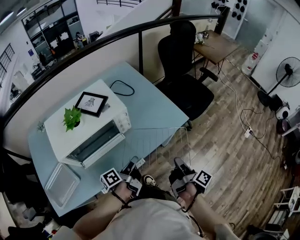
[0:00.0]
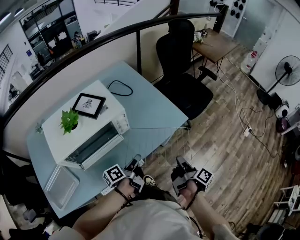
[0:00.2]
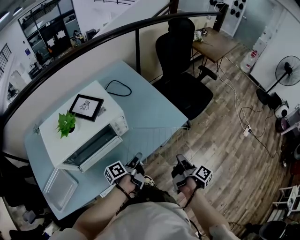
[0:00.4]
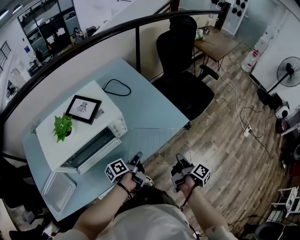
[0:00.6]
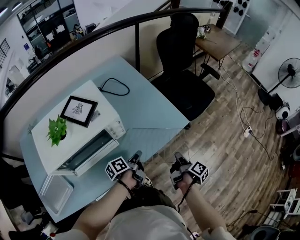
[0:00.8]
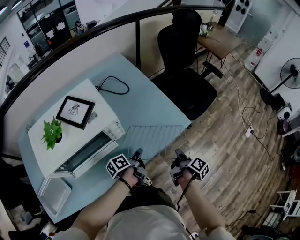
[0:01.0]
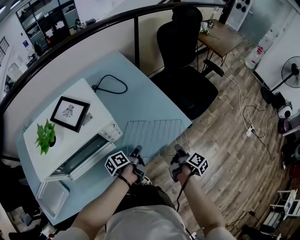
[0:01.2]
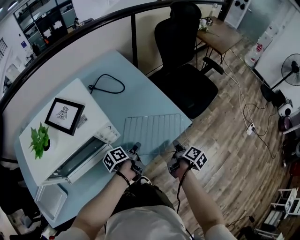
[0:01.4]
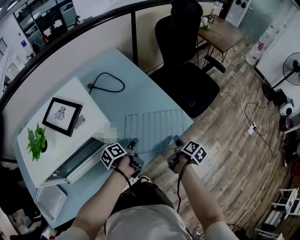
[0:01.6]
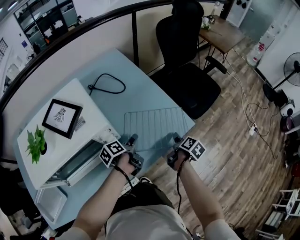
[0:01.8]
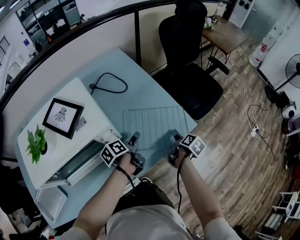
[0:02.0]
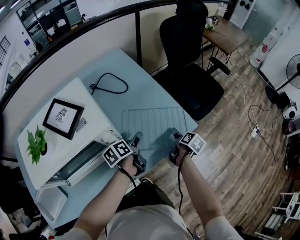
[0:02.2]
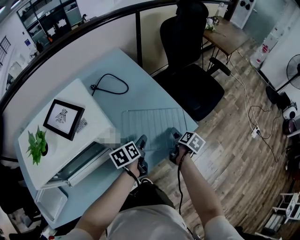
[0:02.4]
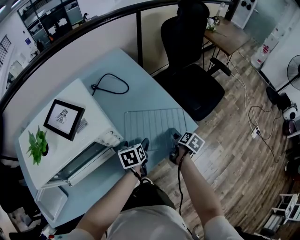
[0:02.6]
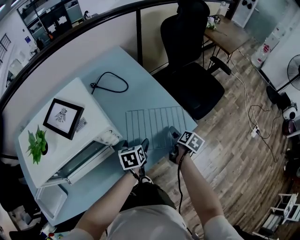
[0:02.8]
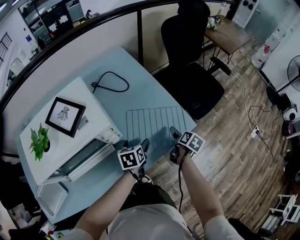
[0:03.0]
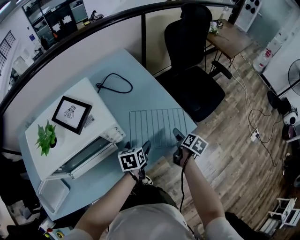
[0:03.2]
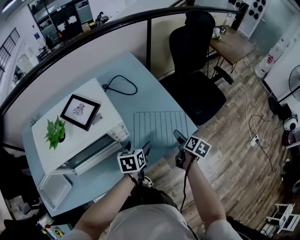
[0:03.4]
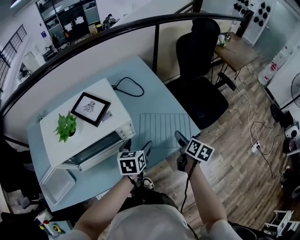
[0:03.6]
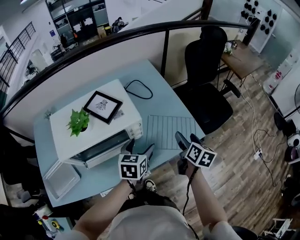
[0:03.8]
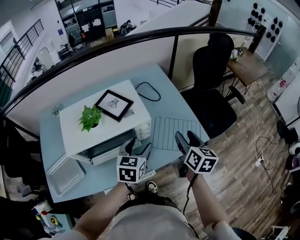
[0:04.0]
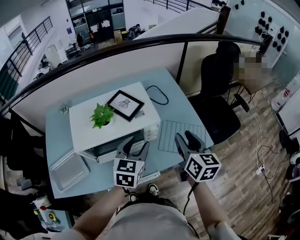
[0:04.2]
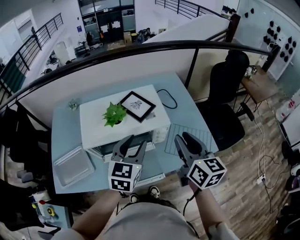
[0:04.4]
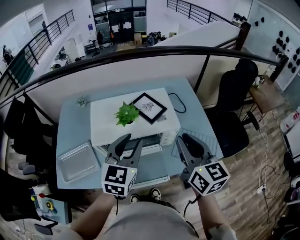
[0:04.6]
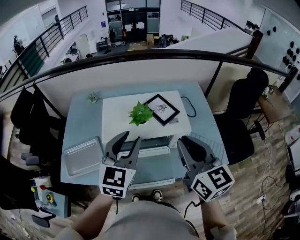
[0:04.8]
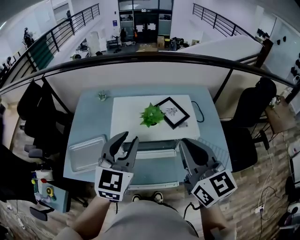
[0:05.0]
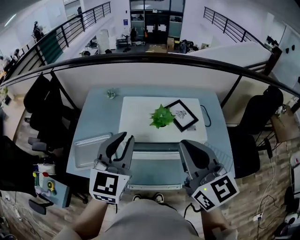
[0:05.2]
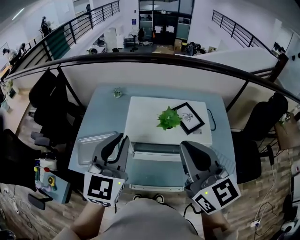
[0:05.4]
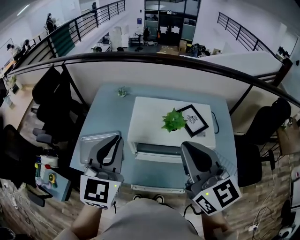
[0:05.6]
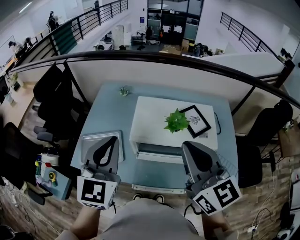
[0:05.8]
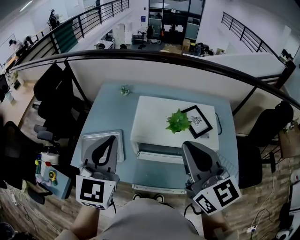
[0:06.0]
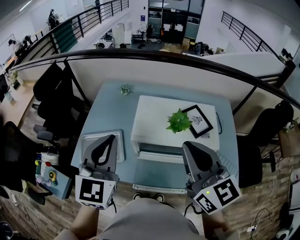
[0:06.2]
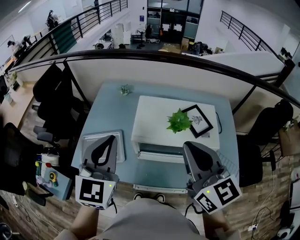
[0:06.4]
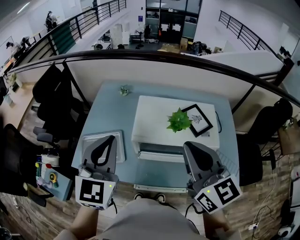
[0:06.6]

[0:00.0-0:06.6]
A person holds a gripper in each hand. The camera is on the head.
0:00.0 to 0:01.6: The grippers both shift forward and downward by about 25 cm. The right gripper turns by some 40 degrees; the left gripper swivels about 30 degrees.
0:01.6 to 0:03.2: The left gripper rolls clockwise, seen from behind, by roughly 50 degrees, and opens. Meanwhile the right gripper rotates roughly 20 degrees, and opens.
0:03.2 to 0:05.0: The grippers both shift upward by approximately 40 cm. The right gripper tilts its fingers some 40 degrees upward, and closes its fingers. Meanwhile the left gripper angles its fingers upward, by some 40 degrees, and closes its fingers.
0:05.0 to 0:06.6: The left gripper moves to the left, roughly 15 cm. Meanwhile the right gripper is displaced to the left by approximately 10 cm.

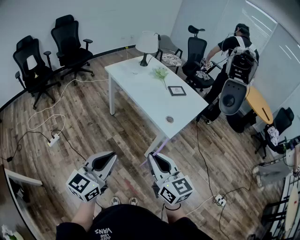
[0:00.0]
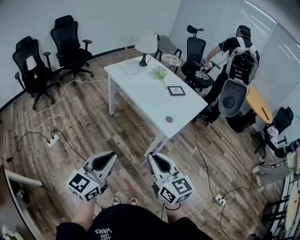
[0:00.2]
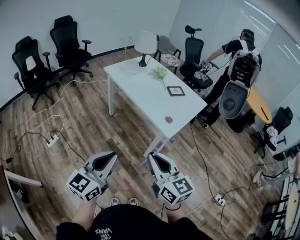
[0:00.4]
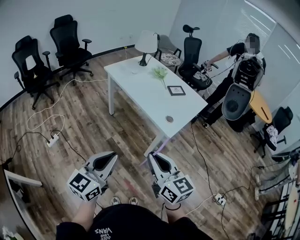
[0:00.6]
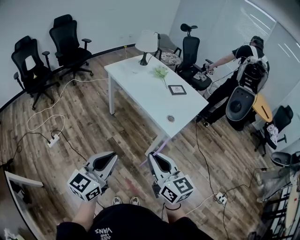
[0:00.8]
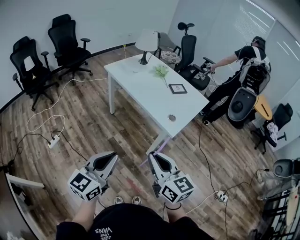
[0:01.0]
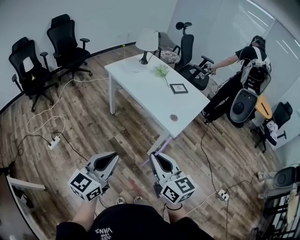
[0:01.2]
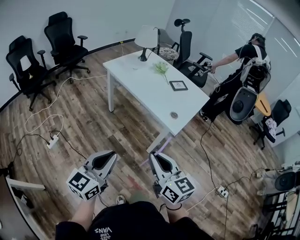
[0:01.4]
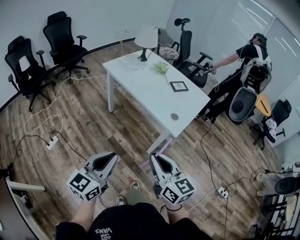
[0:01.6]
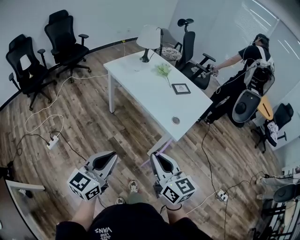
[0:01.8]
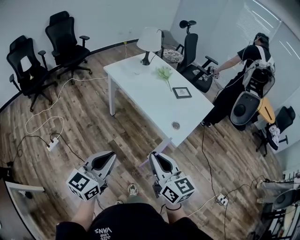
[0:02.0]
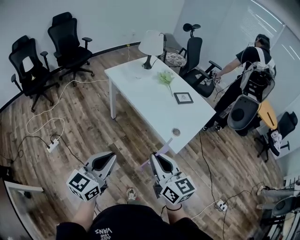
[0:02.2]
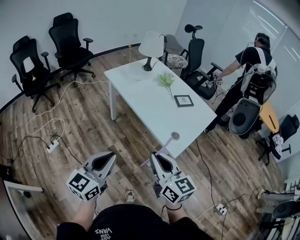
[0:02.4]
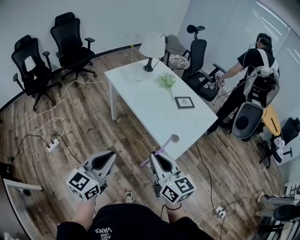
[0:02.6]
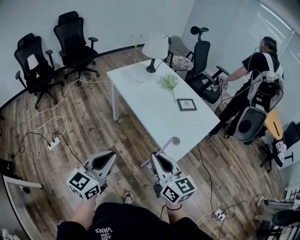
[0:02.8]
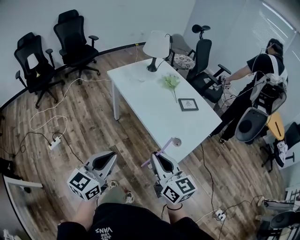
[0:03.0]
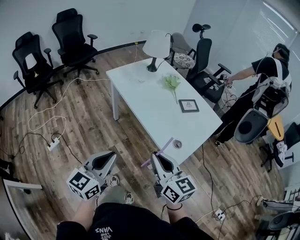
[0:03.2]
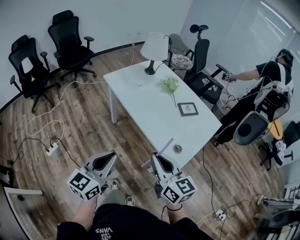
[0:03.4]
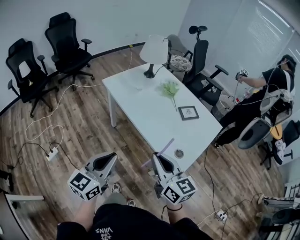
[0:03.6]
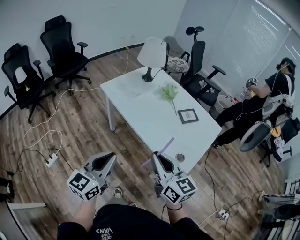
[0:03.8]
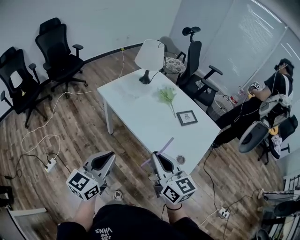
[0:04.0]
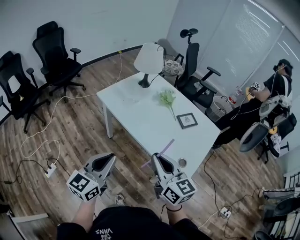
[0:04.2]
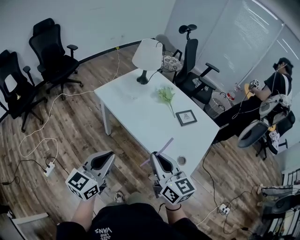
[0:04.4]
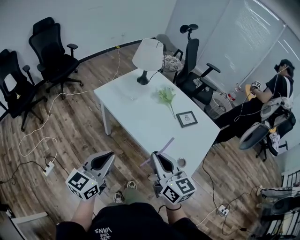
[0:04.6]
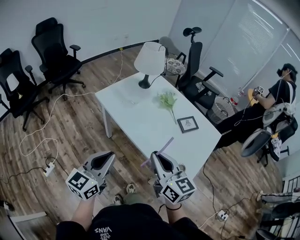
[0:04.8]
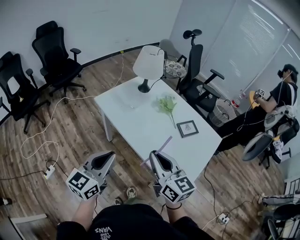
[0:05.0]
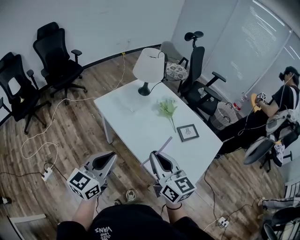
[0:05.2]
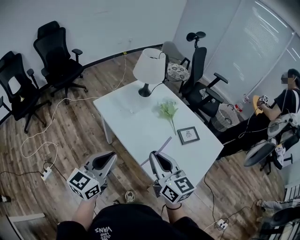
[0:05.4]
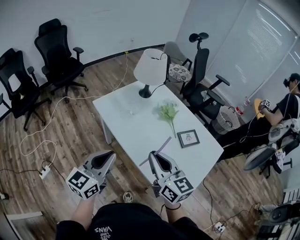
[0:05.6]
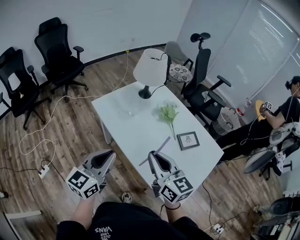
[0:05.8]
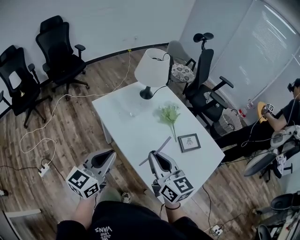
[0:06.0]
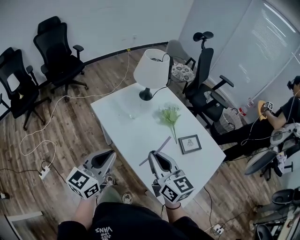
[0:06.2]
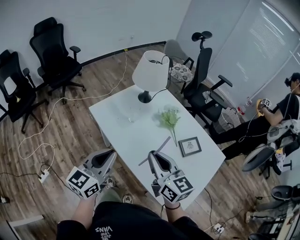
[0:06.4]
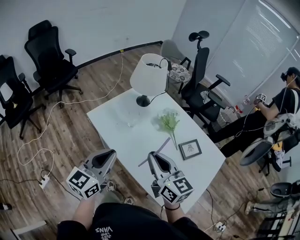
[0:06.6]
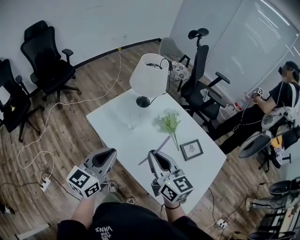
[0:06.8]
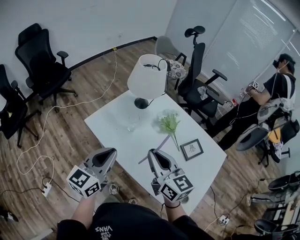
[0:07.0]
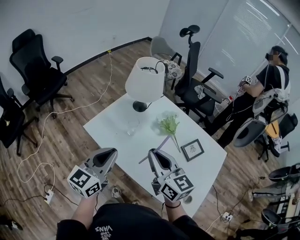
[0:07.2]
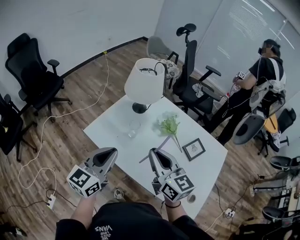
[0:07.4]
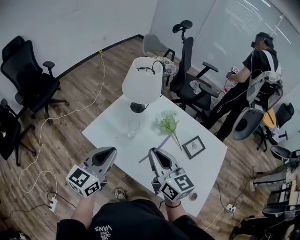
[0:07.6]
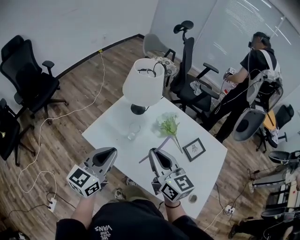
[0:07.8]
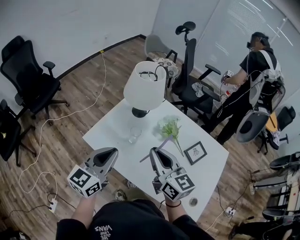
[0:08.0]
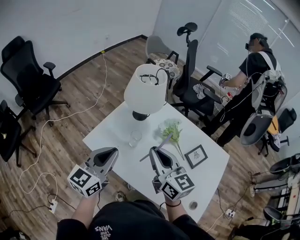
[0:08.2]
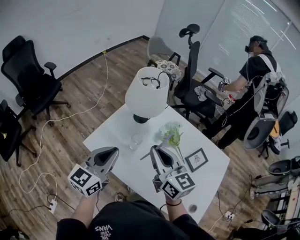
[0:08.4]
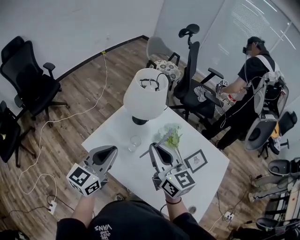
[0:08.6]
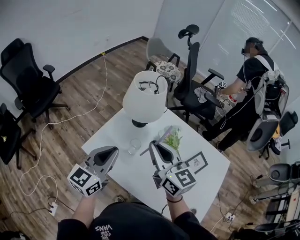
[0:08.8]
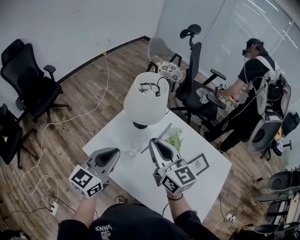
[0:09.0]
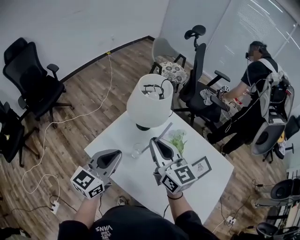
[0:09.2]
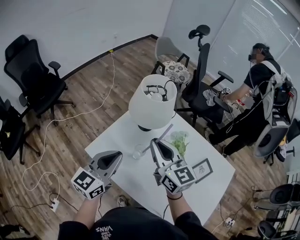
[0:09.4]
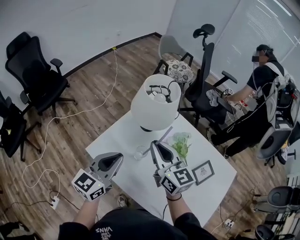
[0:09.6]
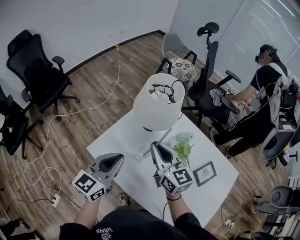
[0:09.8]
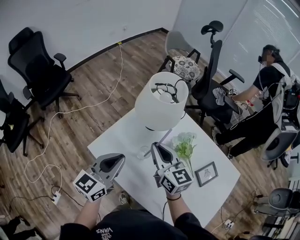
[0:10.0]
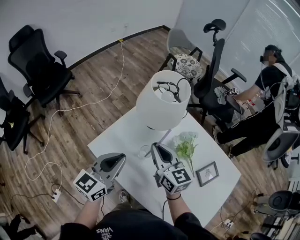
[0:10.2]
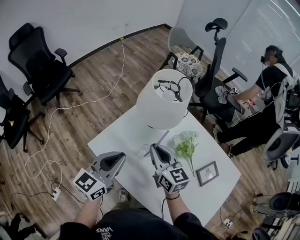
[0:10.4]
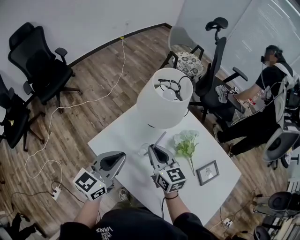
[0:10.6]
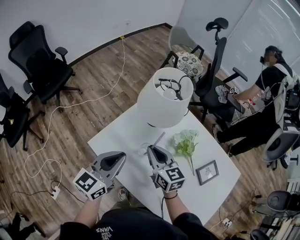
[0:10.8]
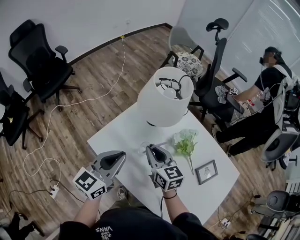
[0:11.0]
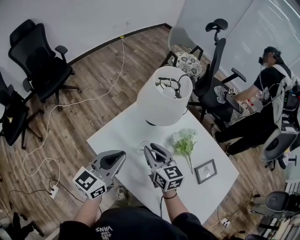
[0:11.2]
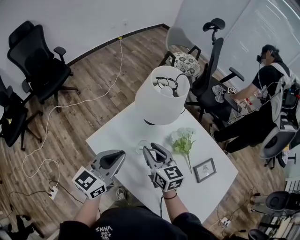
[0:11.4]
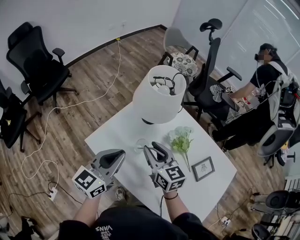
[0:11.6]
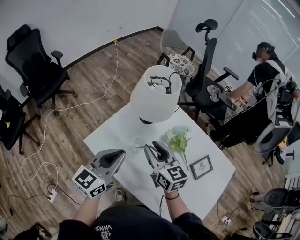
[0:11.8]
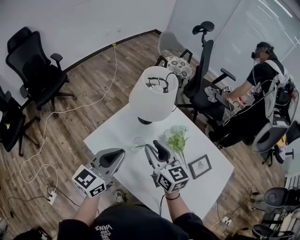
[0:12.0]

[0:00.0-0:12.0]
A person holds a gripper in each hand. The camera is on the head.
0:00.0 to 0:01.6: The left gripper goes approximately 5 cm to the left. The right gripper moves approximately 5 cm.
0:01.6 to 0:03.0: Both grippers travel together forward, some 15 cm.
0:03.0 to 0:04.4: Both grippers travel together forward and to the left, approximately 20 cm.
0:04.4 to 0:06.0: The two grippers go about 15 cm forward.
0:06.0 to 0:07.6: Both grippers move forward and to the left, some 20 cm.
0:07.6 to 0:09.0: Both grippers travel together forward, some 15 cm.
0:09.0 to 0:10.4: The right gripper moves downward, approximately 15 cm. Meanwhile the left gripper changes place by approximately 5 cm.
0:10.4 to 0:12.0: The left gripper shifts by approximately 5 cm; the right gripper moves roughly 5 cm, and opens up.

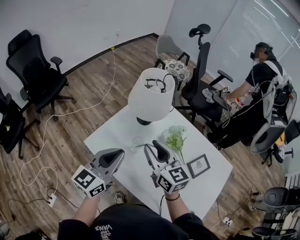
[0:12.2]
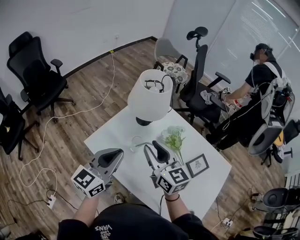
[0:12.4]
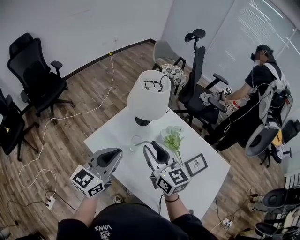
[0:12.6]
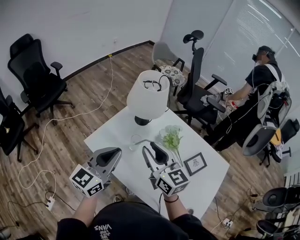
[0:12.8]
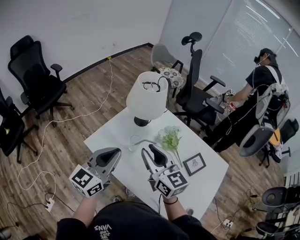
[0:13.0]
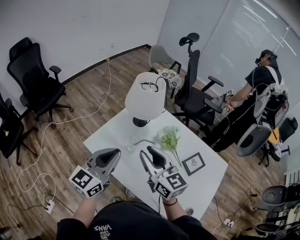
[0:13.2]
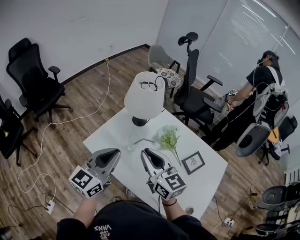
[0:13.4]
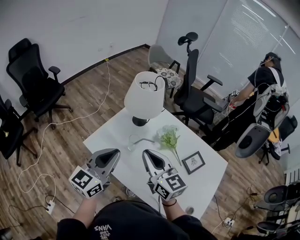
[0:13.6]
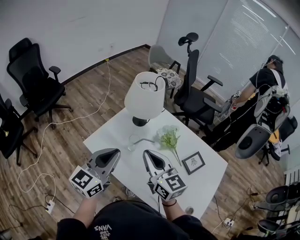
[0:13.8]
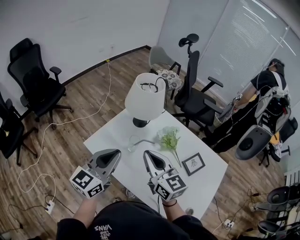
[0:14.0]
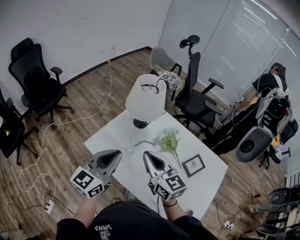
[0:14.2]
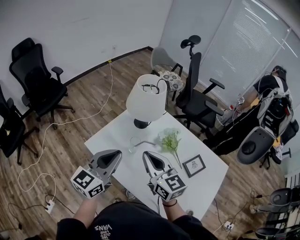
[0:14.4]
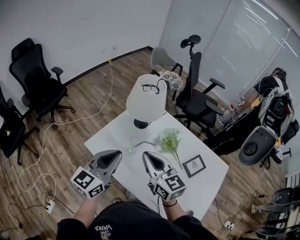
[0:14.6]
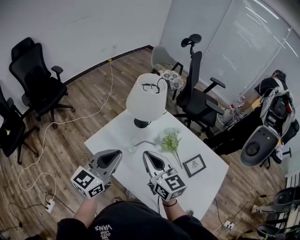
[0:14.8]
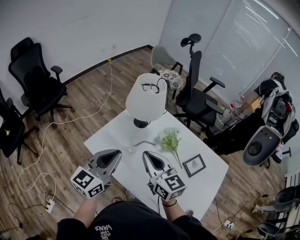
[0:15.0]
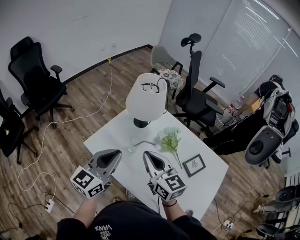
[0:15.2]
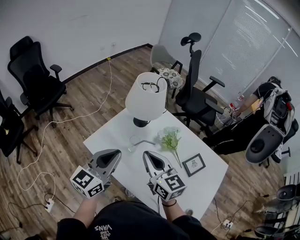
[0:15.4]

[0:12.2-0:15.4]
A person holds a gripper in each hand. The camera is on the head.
0:12.2 to 0:13.8: The right gripper moves backward, some 10 cm, and closes its fingers; the left gripper goes about 5 cm backward.
0:13.8 to 0:15.4: The grippers move only a little.

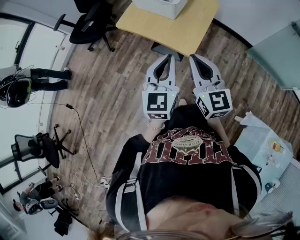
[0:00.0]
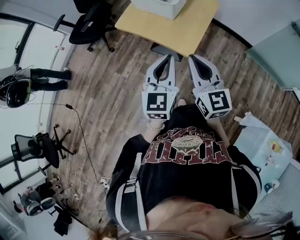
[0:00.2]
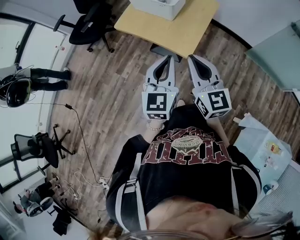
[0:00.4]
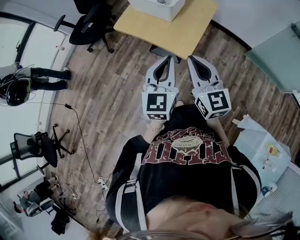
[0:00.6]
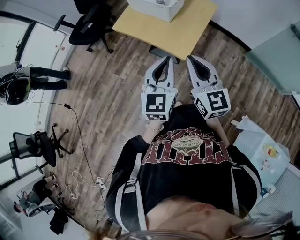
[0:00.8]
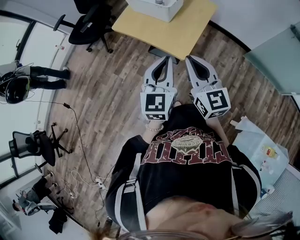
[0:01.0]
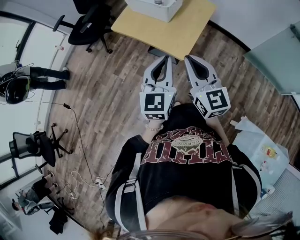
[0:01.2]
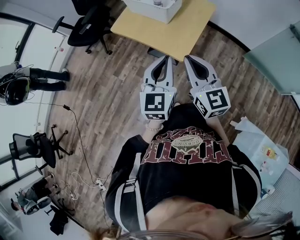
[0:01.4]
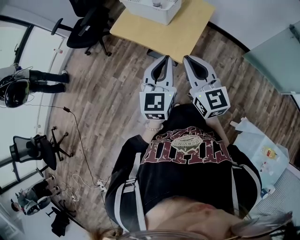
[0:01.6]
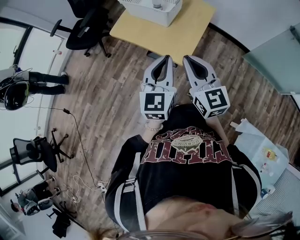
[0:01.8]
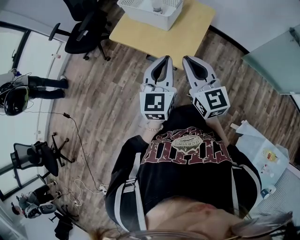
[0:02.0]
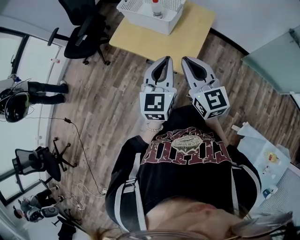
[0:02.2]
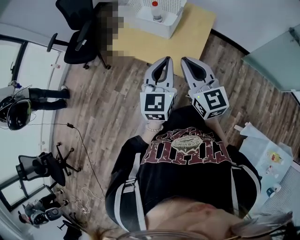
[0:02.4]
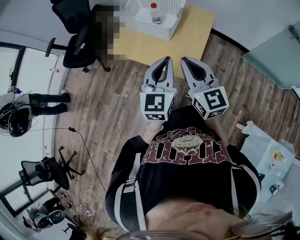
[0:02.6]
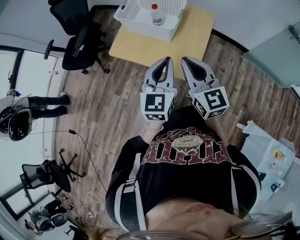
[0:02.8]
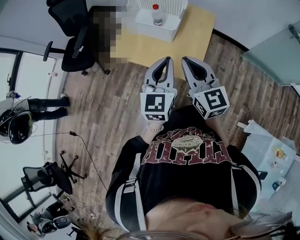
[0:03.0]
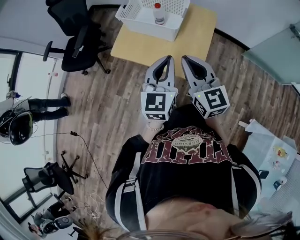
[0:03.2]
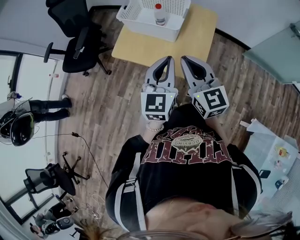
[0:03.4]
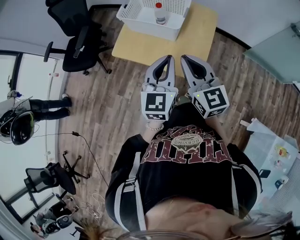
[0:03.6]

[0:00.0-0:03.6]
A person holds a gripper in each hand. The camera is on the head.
0:00.0 to 0:01.8: Both grippers travel together forward, approximately 5 cm.
0:01.8 to 0:03.6: Both grippers move forward and to the left, some 15 cm.
